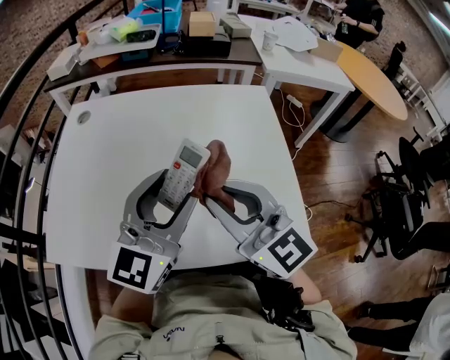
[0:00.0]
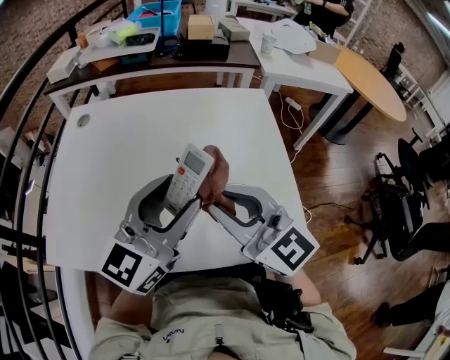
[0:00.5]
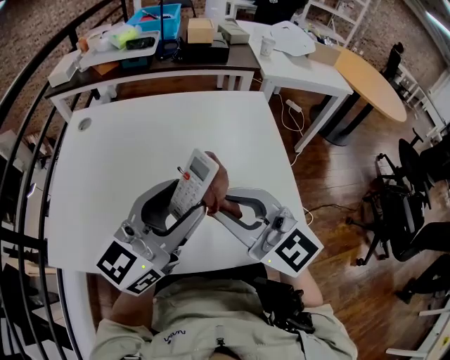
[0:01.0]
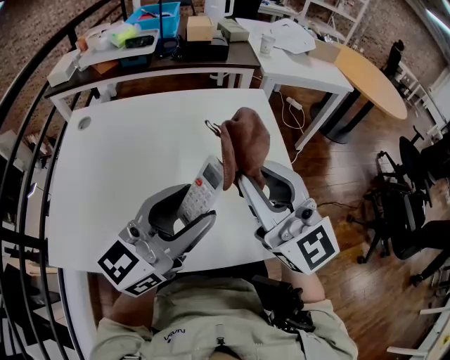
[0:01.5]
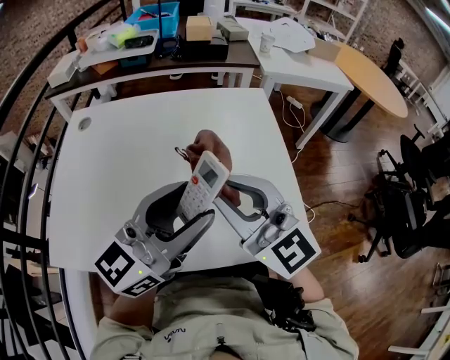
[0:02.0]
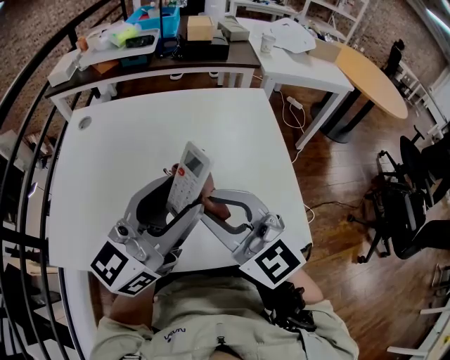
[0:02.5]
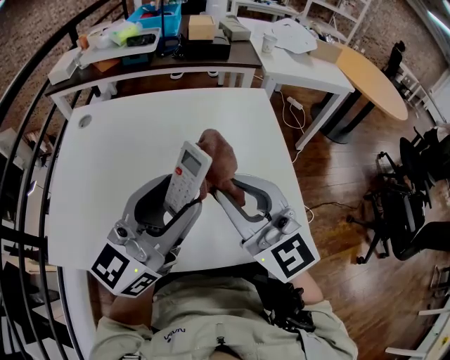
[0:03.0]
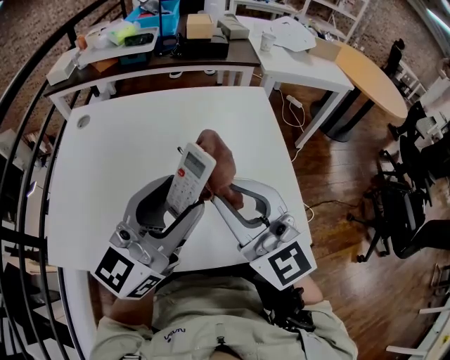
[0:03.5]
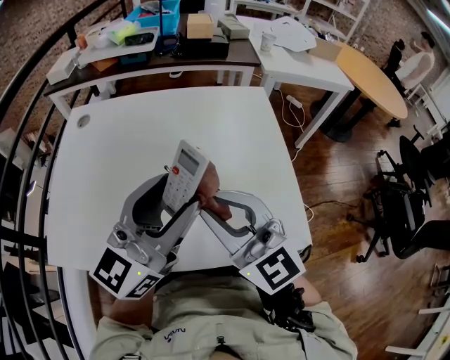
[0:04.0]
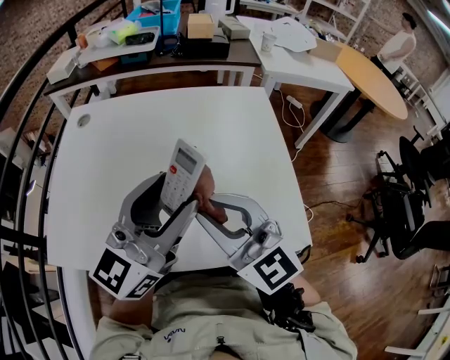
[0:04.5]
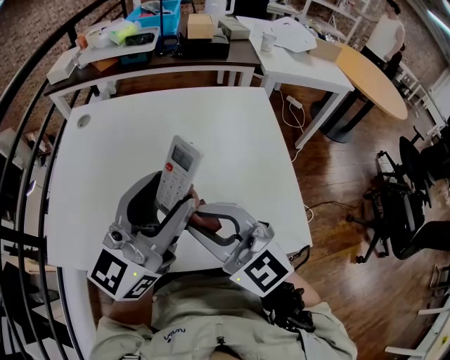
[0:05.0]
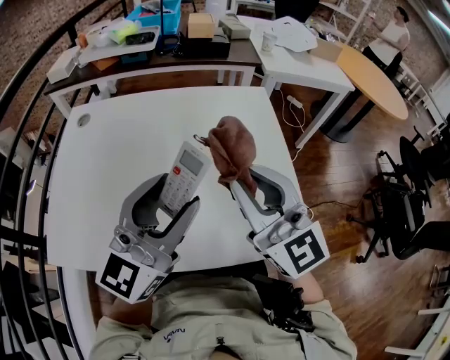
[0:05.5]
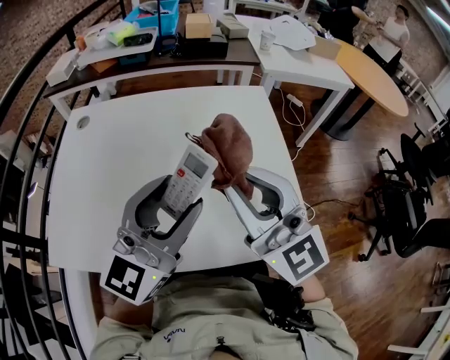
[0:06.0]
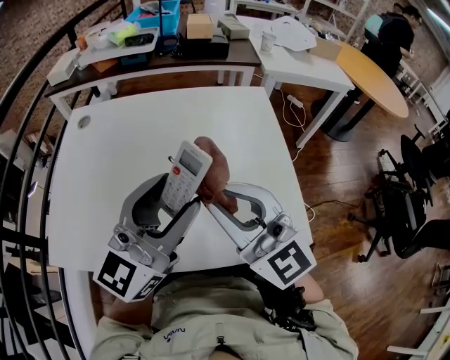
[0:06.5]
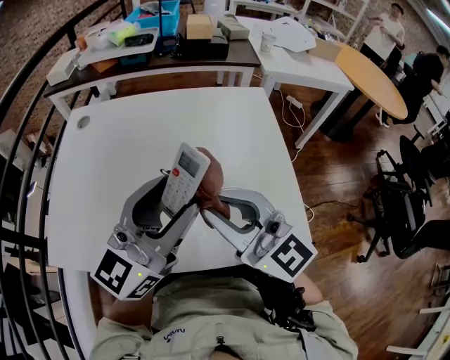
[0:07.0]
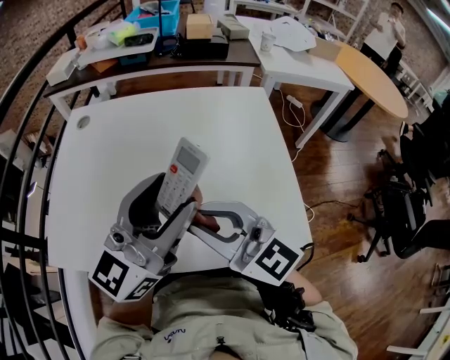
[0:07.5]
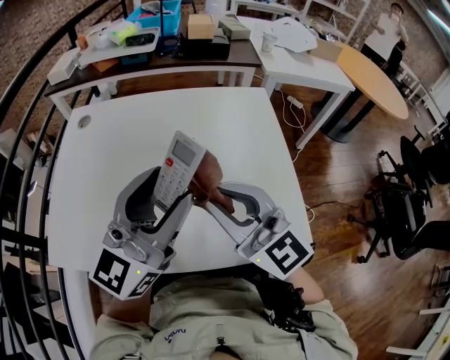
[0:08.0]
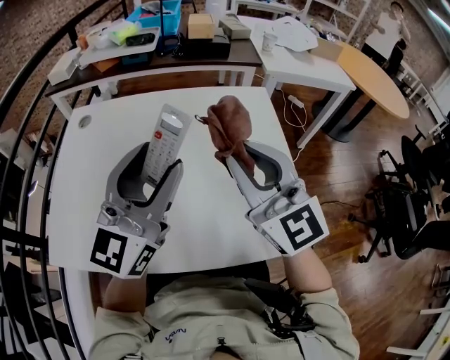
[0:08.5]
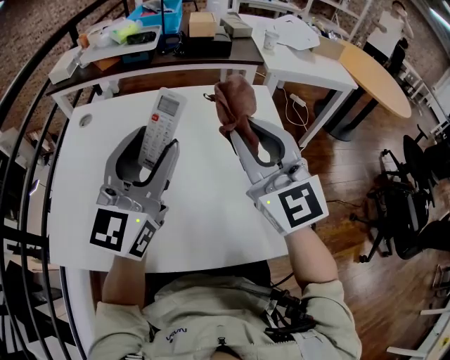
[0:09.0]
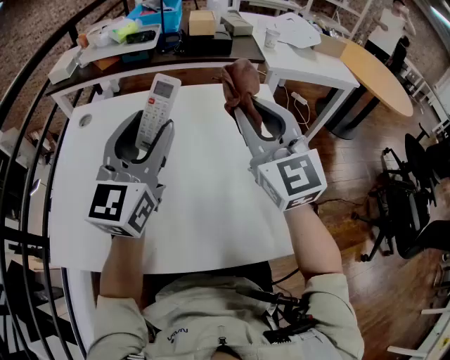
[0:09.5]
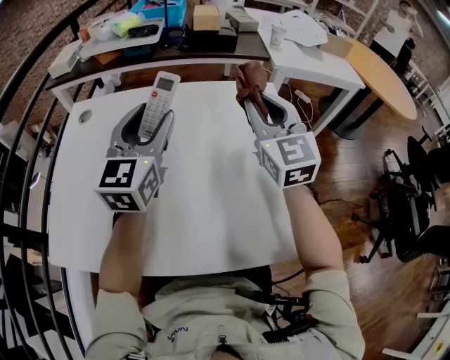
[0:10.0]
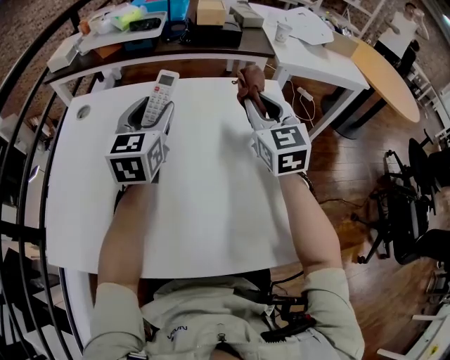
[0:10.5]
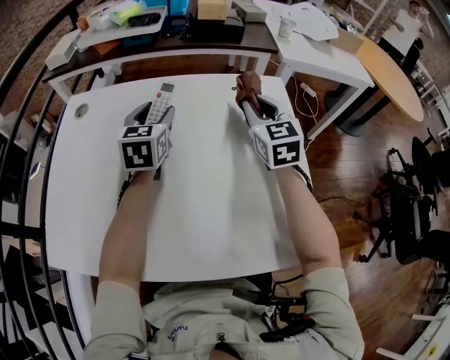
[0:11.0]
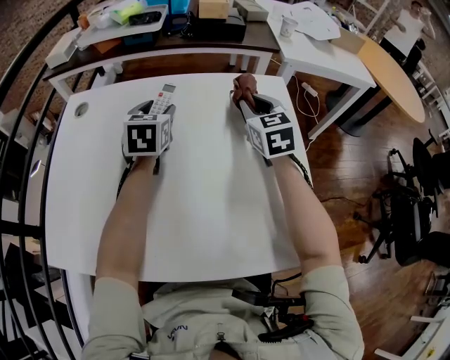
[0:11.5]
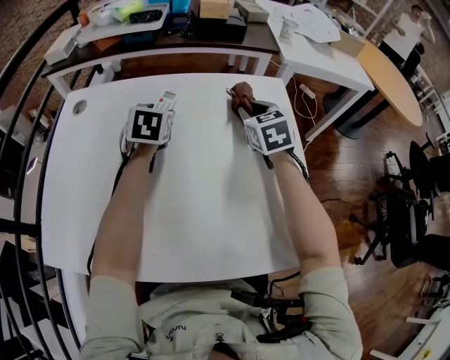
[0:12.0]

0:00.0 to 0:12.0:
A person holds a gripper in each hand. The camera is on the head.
0:00.0 to 0:02.0: The left gripper moves about 5 cm, and rotates roughly 30 degrees.
0:04.0 to 0:06.0: The right gripper shifts about 5 cm upward.
0:06.0 to 0:08.0: The right gripper travels downward by about 5 cm.
0:08.0 to 0:10.0: The right gripper is displaced forward and to the right by approximately 25 cm, and turns by about 30 degrees. Meanwhile the left gripper is displaced forward by about 20 cm, and changes its angle by roughly 30 degrees.
0:10.0 to 0:12.0: Both grippers move downward and forward, approximately 20 cm. The right gripper tips its fingers downward by some 30 degrees, while the left gripper points its fingers about 40 degrees further downward.

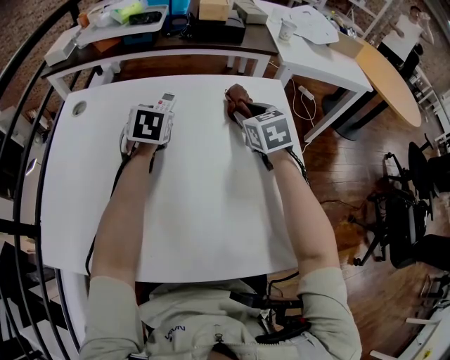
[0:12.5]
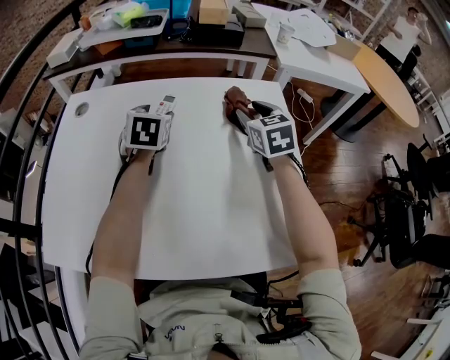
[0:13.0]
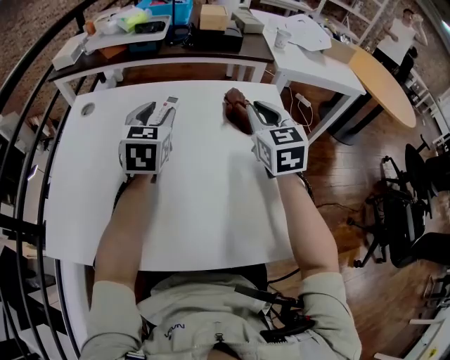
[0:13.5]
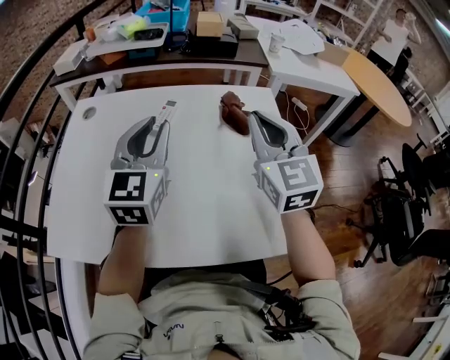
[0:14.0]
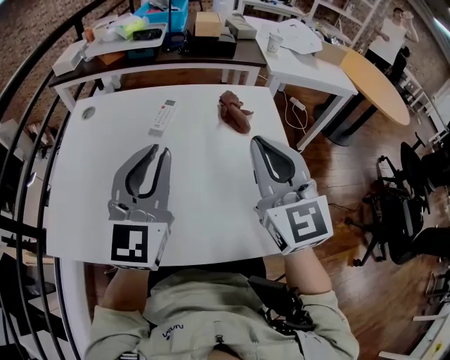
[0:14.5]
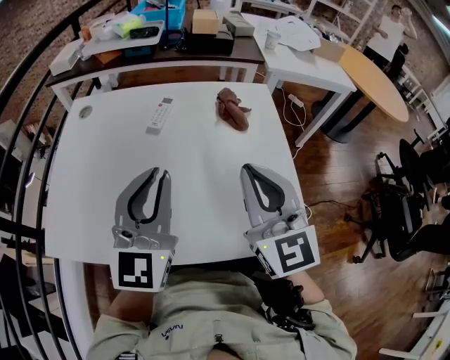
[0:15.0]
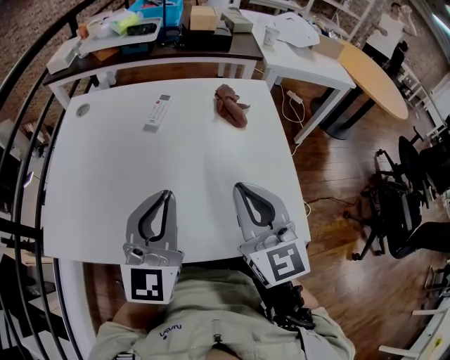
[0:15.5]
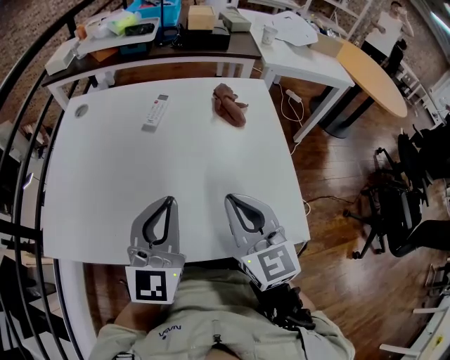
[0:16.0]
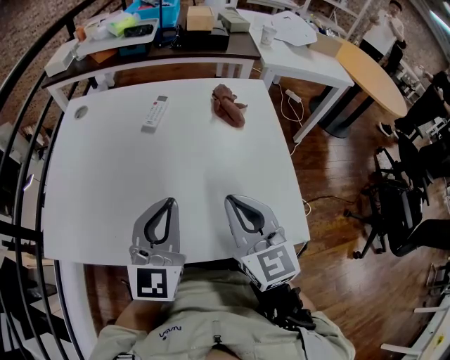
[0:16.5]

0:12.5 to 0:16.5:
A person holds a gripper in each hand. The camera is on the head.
0:12.5 to 0:14.5: The two grippers go approximately 30 cm backward and upward. The left gripper points its fingers some 50 degrees further upward, and closes up. The right gripper points its fingers approximately 40 degrees further upward, and closes its fingers.
0:14.5 to 0:16.5: Both grippers travel together downward and backward, about 15 cm.

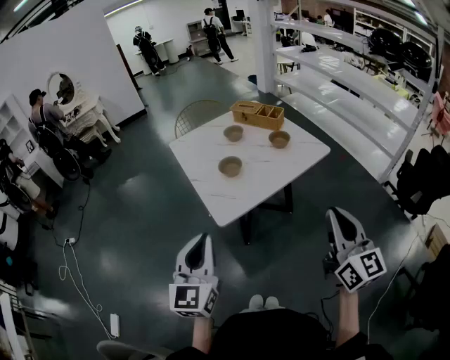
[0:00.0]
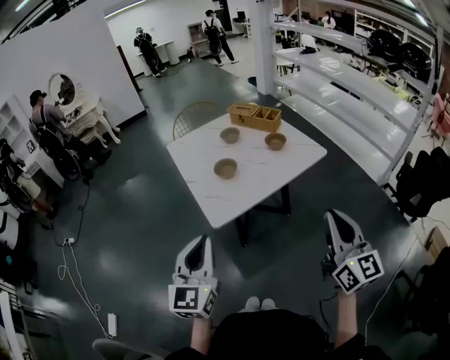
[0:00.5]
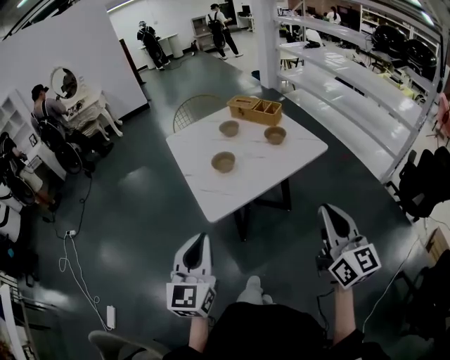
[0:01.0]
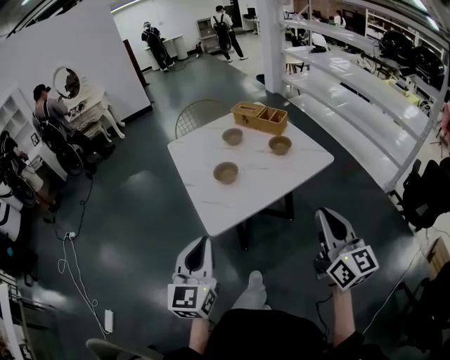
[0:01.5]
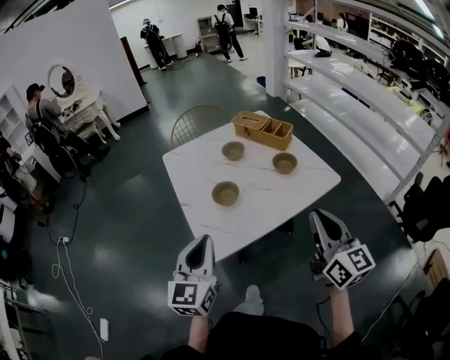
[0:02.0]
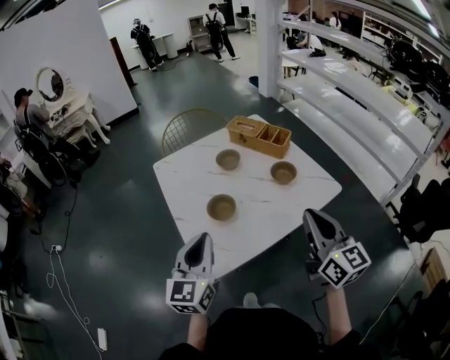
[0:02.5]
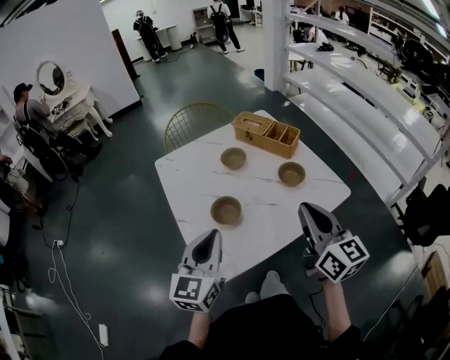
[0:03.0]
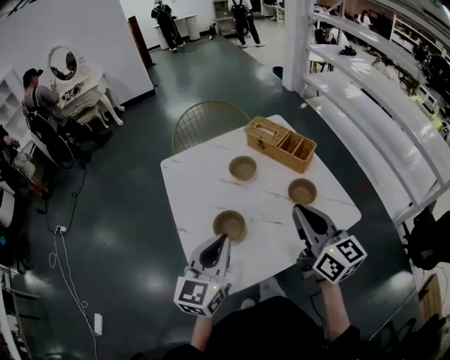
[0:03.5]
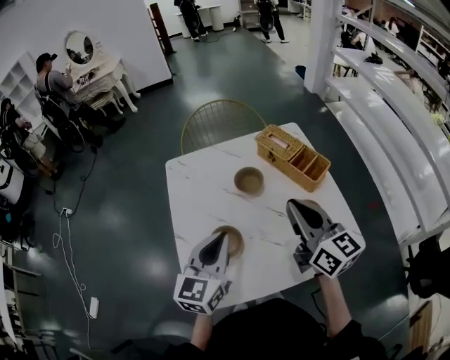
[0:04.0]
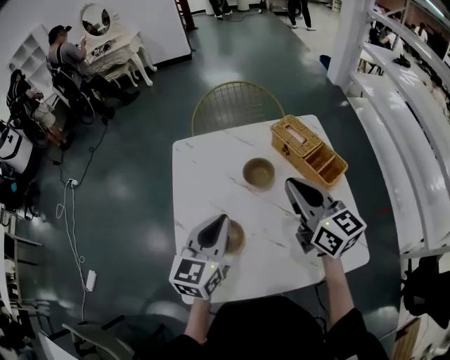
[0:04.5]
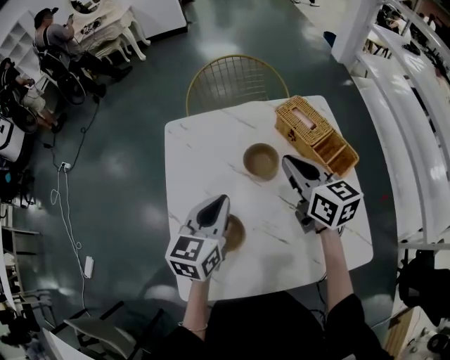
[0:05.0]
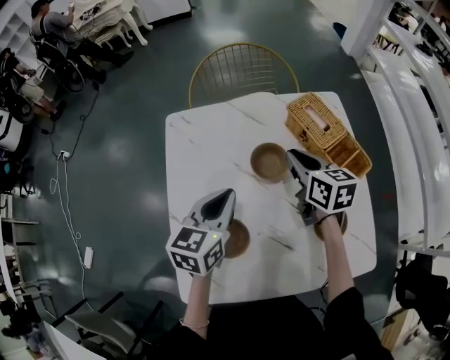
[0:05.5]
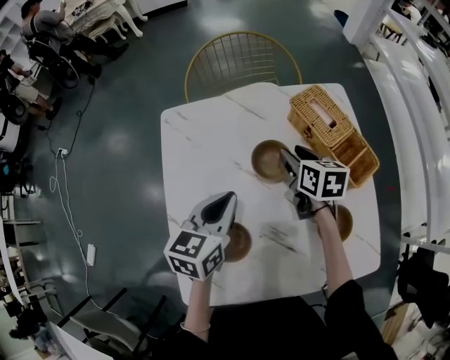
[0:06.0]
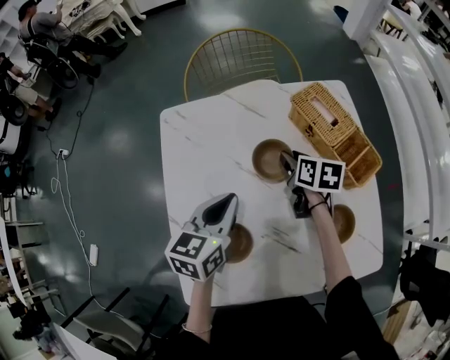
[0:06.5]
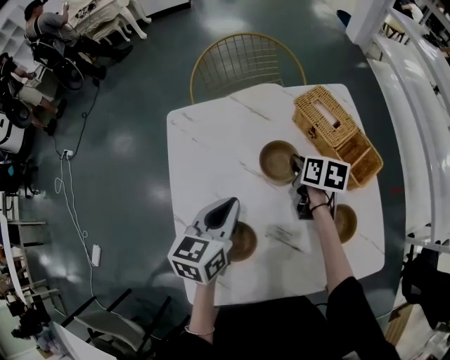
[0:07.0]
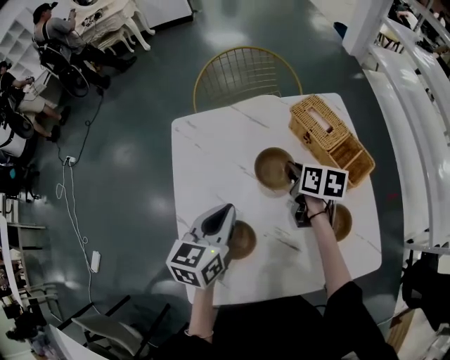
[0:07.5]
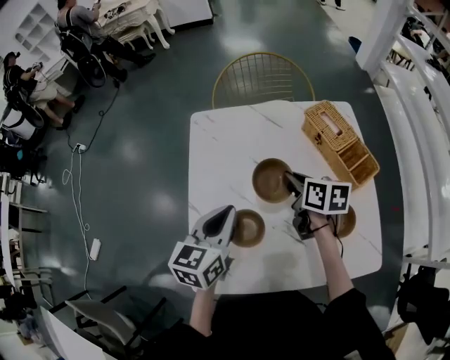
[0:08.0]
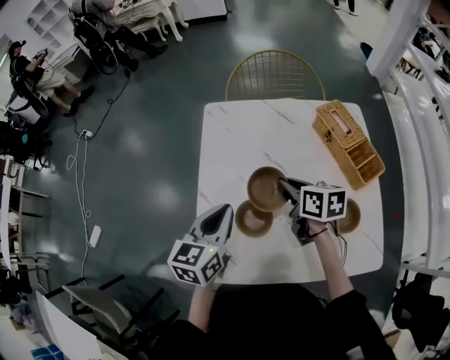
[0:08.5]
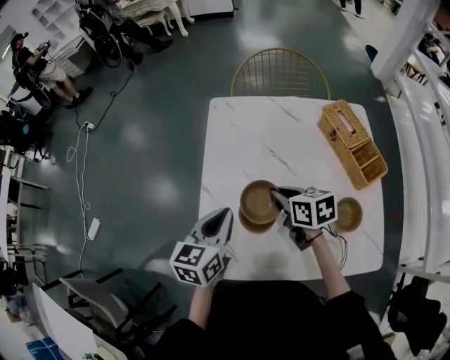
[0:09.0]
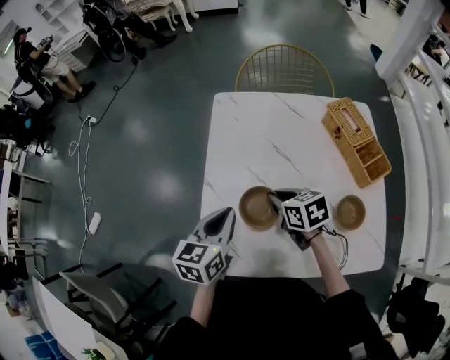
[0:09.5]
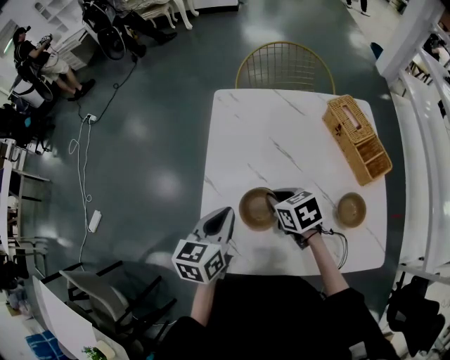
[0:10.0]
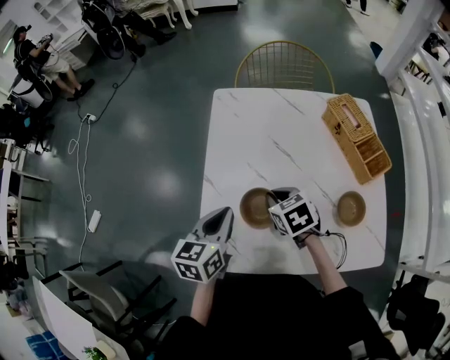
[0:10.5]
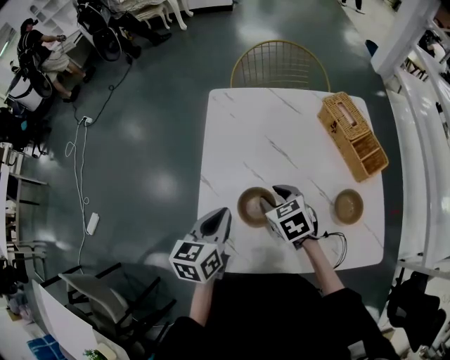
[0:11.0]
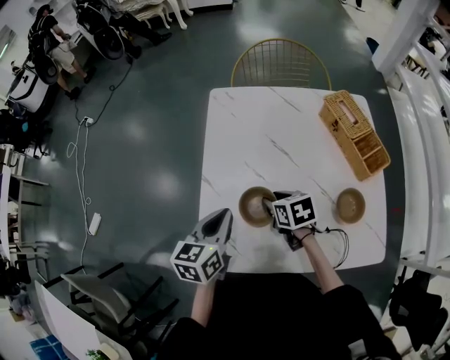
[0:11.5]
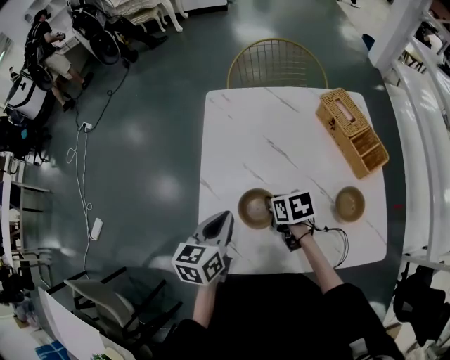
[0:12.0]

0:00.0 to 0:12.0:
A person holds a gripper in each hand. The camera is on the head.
0:00.0 to 0:02.0: Both grippers move forward, some 20 cm.
0:02.0 to 0:04.0: The two grippers go some 30 cm forward. The right gripper turns by approximately 20 degrees.
0:04.0 to 0:06.0: The right gripper goes roughly 35 cm forward and downward, points its fingers approximately 40 degrees further downward, and opens up. Meanwhile the left gripper heads forward and downward, covering roughly 20 cm, and swivels roughly 20 degrees.
0:06.0 to 0:08.0: The right gripper moves backward and to the left, about 10 cm, and closes. Meanwhile the left gripper moves backward, some 10 cm.
0:08.0 to 0:10.0: The right gripper goes about 15 cm to the left and backward, and turns by some 40 degrees. The left gripper moves to the left and backward, about 10 cm.
0:10.0 to 0:12.0: The right gripper opens, then closes once more.
